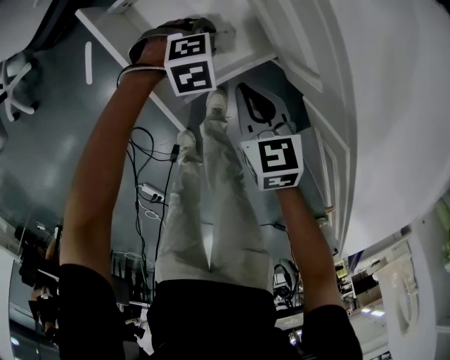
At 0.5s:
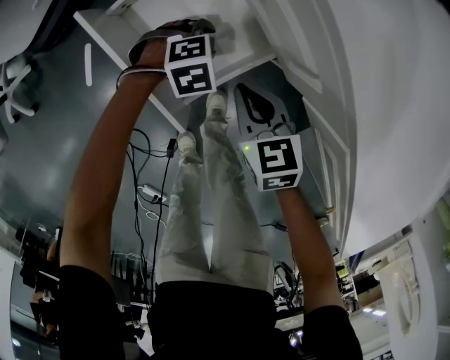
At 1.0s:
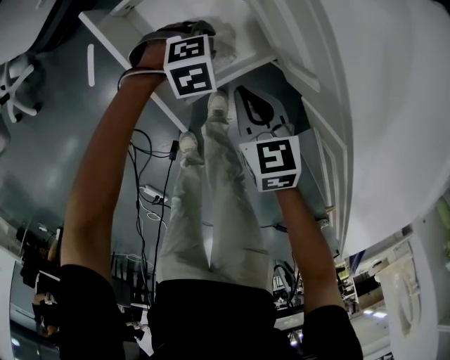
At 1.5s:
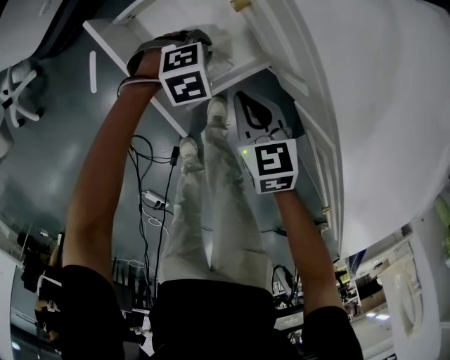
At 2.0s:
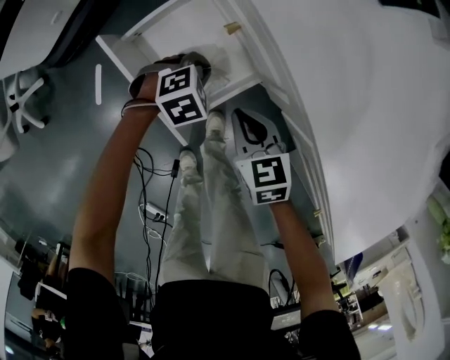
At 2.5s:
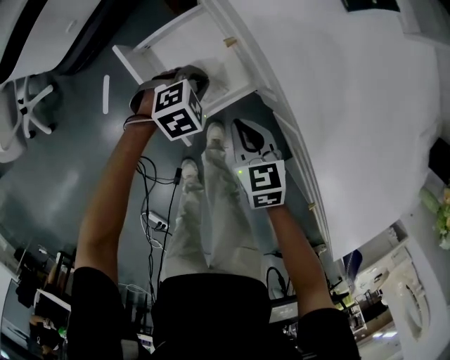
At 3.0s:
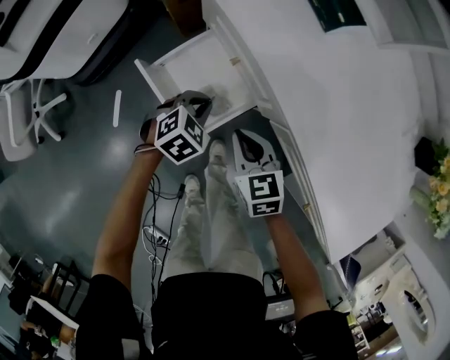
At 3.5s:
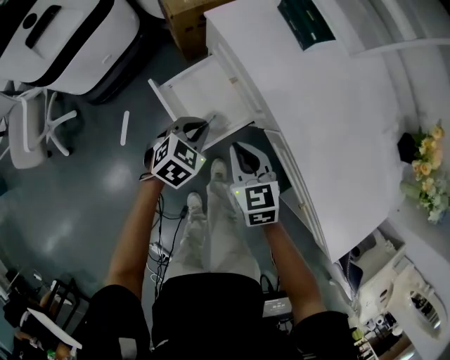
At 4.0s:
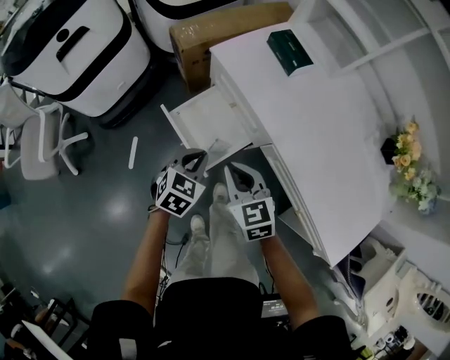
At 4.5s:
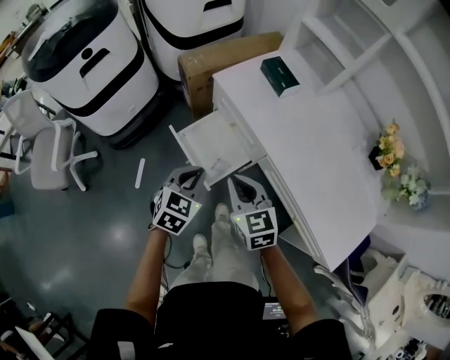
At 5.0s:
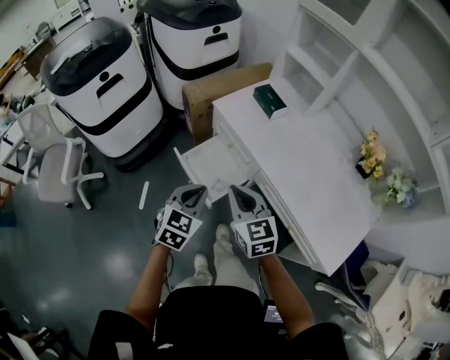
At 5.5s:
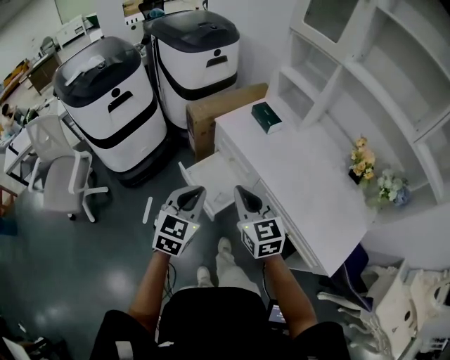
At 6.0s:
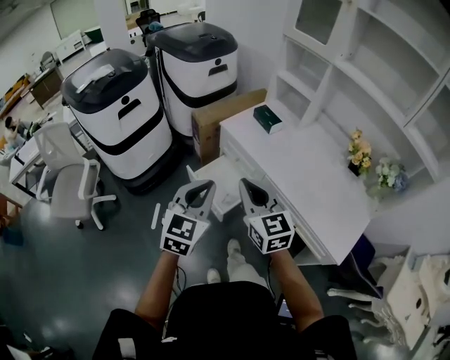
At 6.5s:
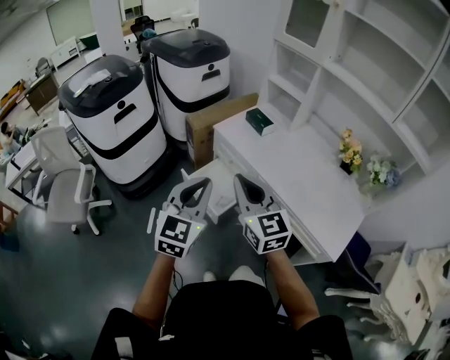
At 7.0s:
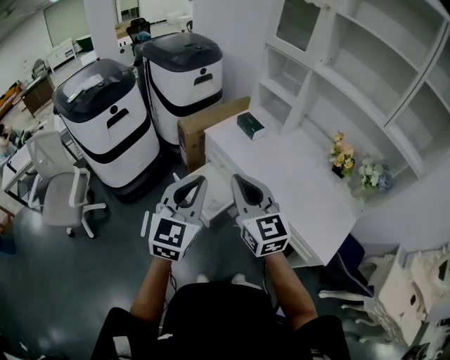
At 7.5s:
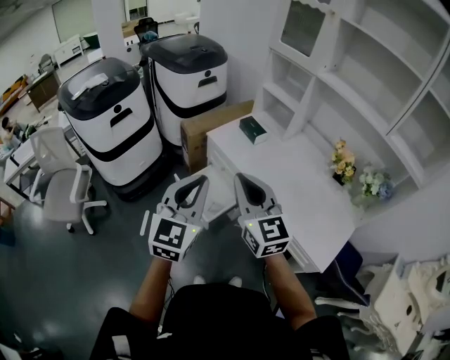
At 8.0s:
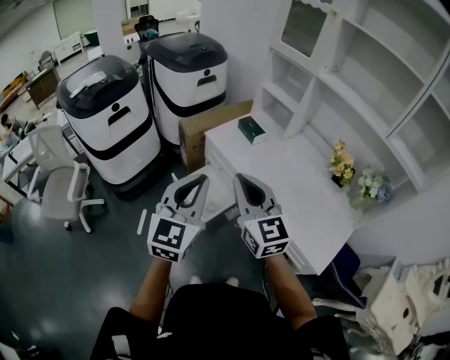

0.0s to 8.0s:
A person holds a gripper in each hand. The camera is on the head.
0.0s to 2.0s: The left gripper shifts roughly 5 cm upward, and closes.
2.0s to 4.0s: Both grippers travel together upward, about 30 cm. The left gripper turns by roughly 40 degrees.
4.0s to 6.0s: The grippers both shift upward and backward by some 35 cm. The left gripper points its fingers about 30 degrees further upward. Meanwhile the right gripper swivels about 20 degrees.
6.0s to 8.0s: The grippers both shift upward by about 10 cm.

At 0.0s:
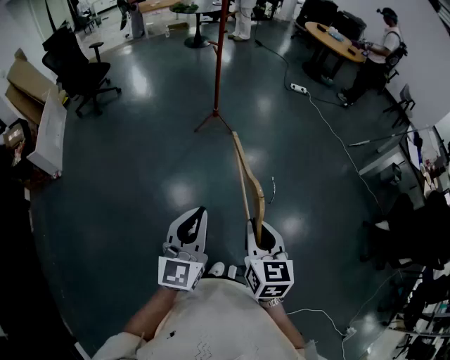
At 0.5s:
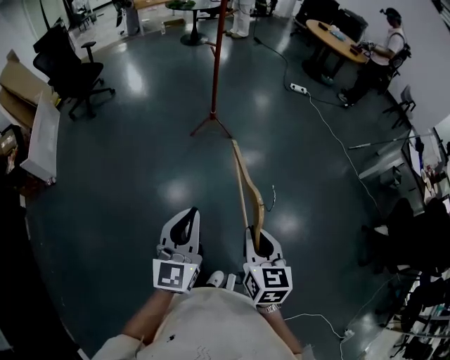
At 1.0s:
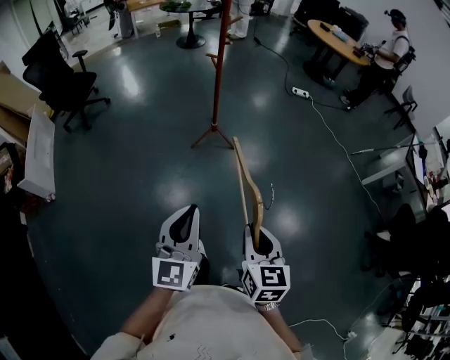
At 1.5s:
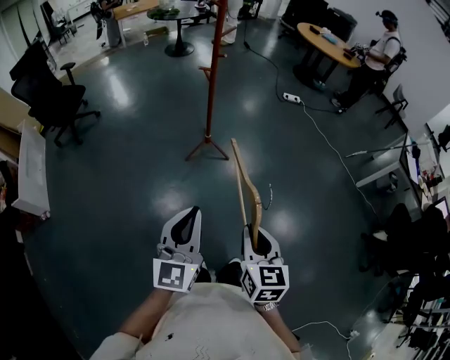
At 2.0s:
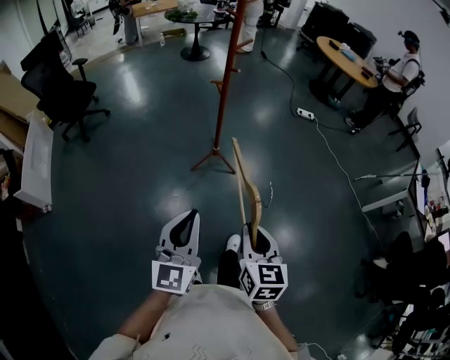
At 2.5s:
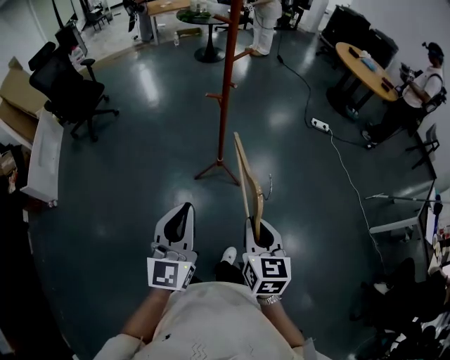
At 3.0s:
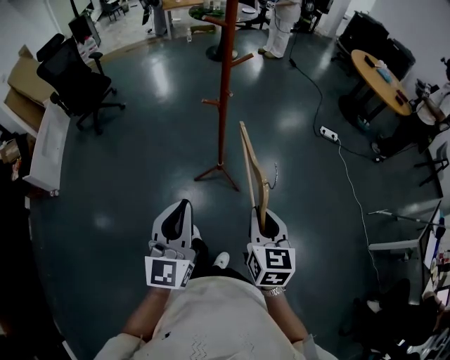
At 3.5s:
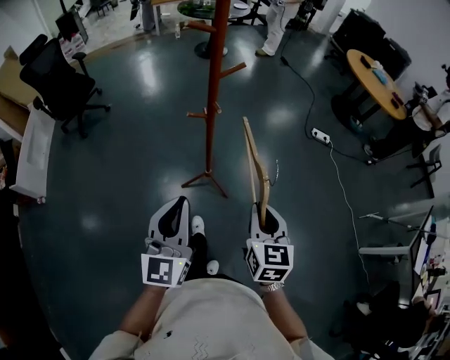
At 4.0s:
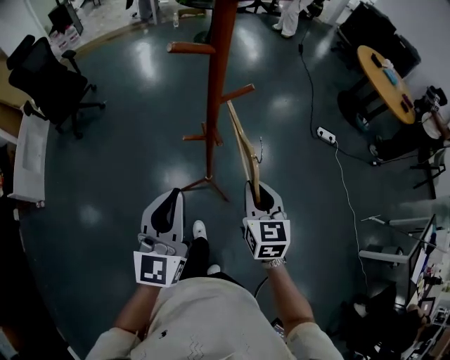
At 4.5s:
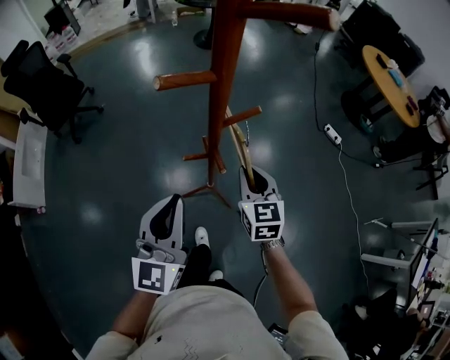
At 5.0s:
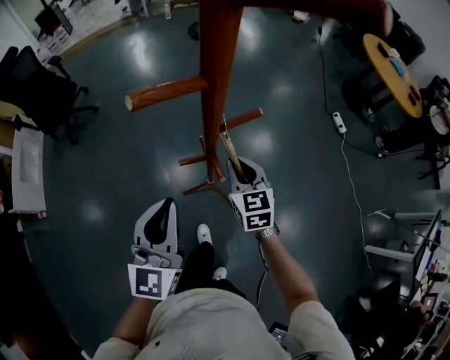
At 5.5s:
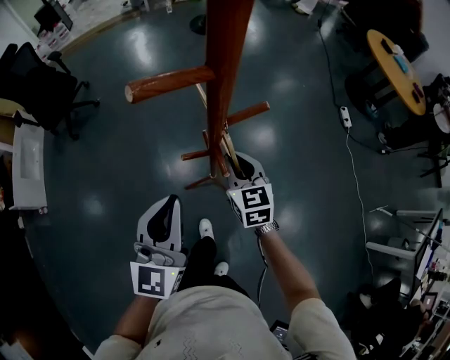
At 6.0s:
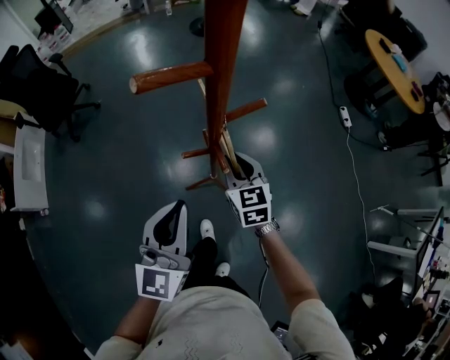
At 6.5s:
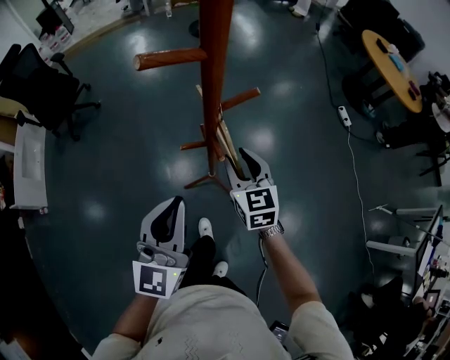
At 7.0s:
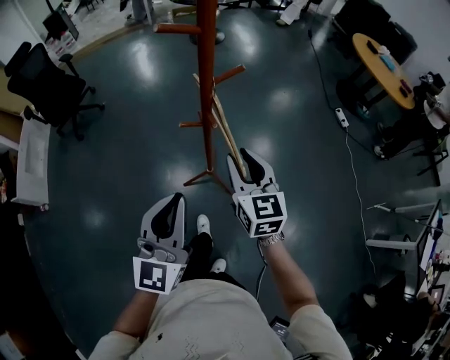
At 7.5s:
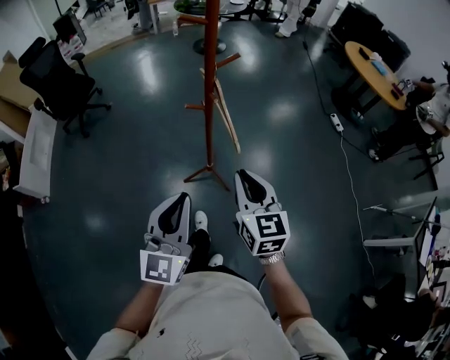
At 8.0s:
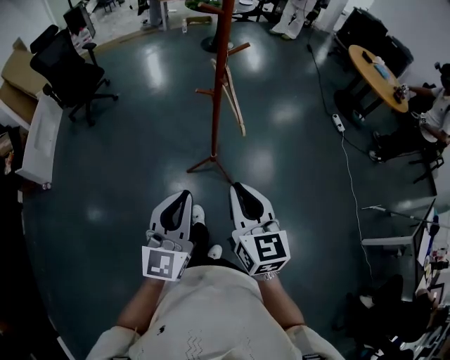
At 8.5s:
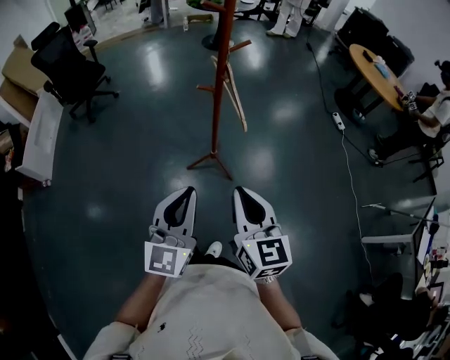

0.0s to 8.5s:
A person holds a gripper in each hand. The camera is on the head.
0.0s to 2.0s: The two grippers travel together, forward, about 40 cm.
2.0s to 4.0s: The pair of grippers is taken forward, about 50 cm.
4.0s to 6.5s: The right gripper is displaced forward and to the left by approximately 15 cm, and opens its fingers. Meanwhile the left gripper shifts some 5 cm forward.
6.5s to 8.5s: Both grippers move backward, some 40 cm. The right gripper closes up.

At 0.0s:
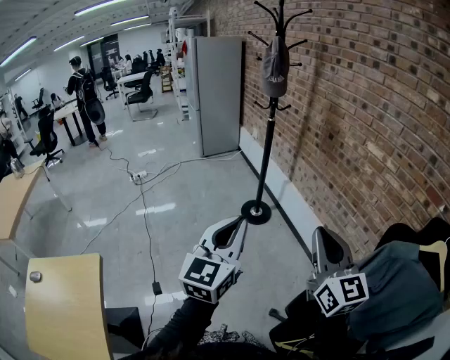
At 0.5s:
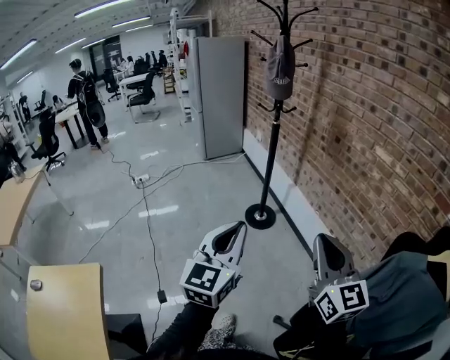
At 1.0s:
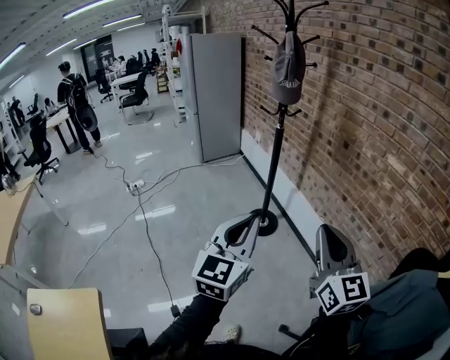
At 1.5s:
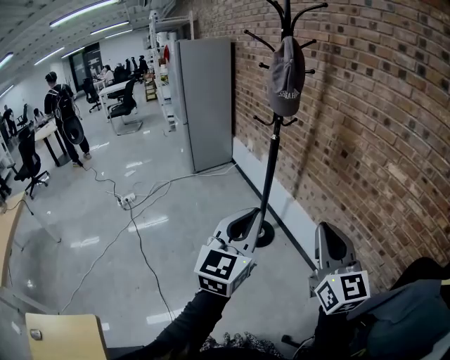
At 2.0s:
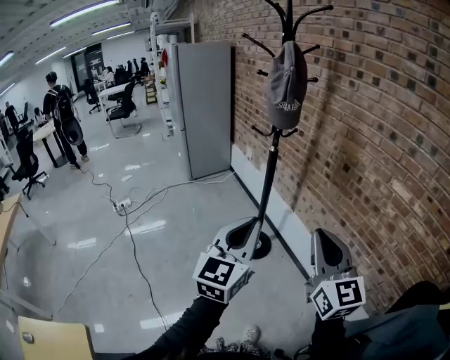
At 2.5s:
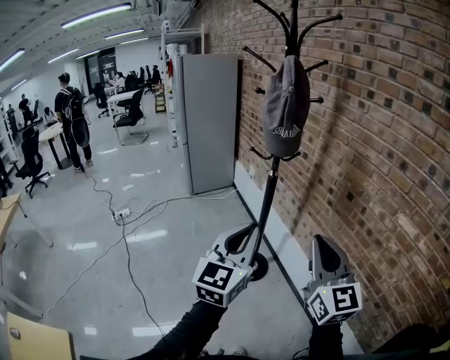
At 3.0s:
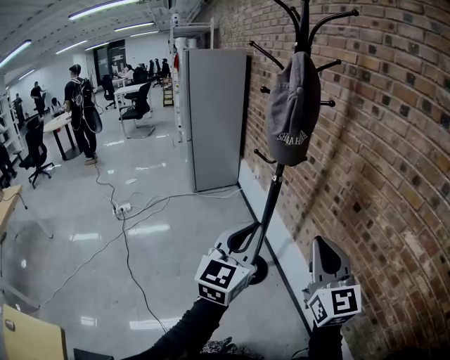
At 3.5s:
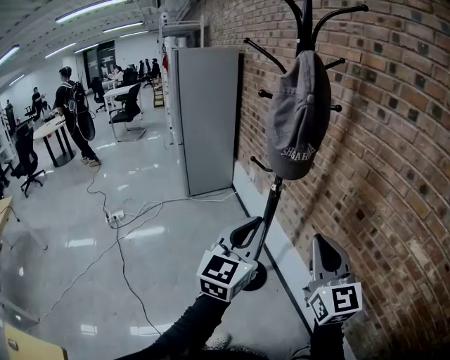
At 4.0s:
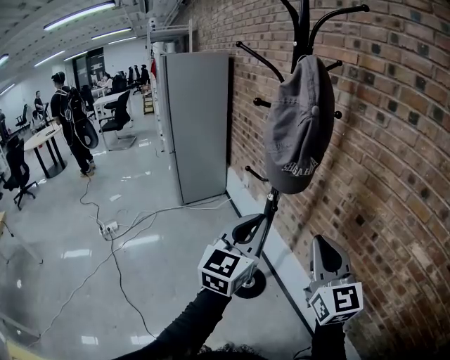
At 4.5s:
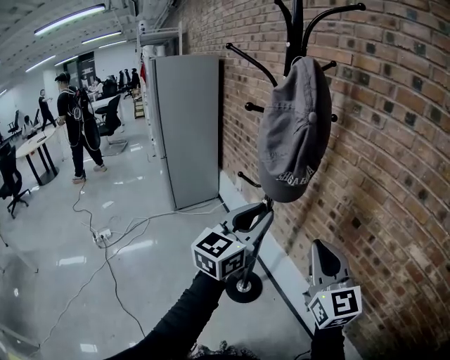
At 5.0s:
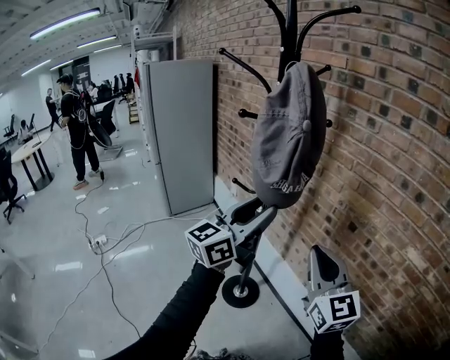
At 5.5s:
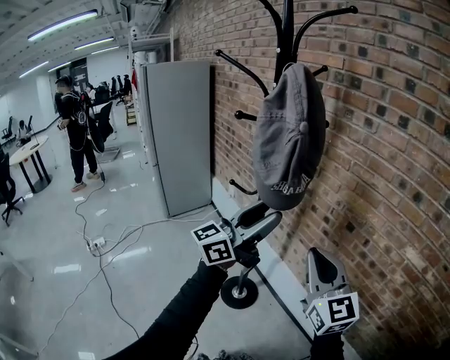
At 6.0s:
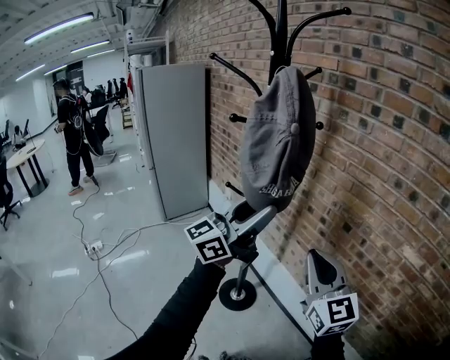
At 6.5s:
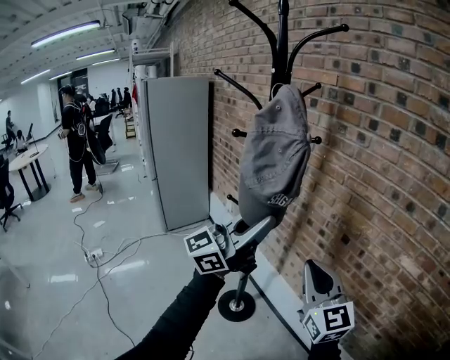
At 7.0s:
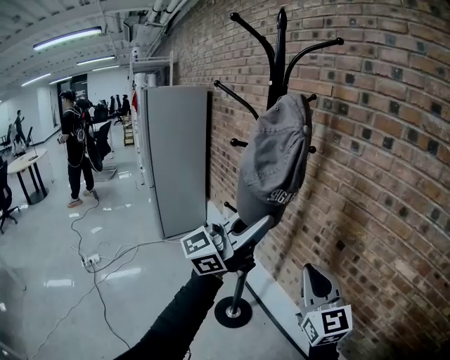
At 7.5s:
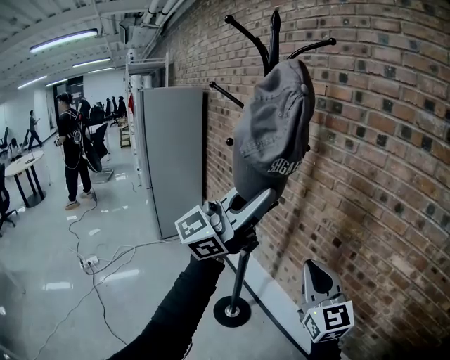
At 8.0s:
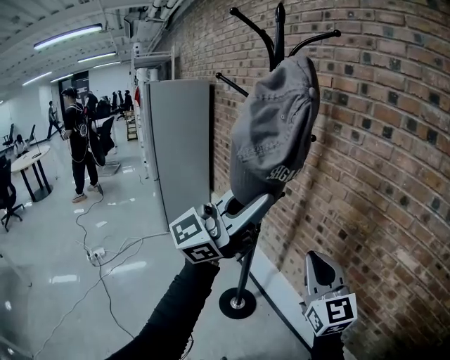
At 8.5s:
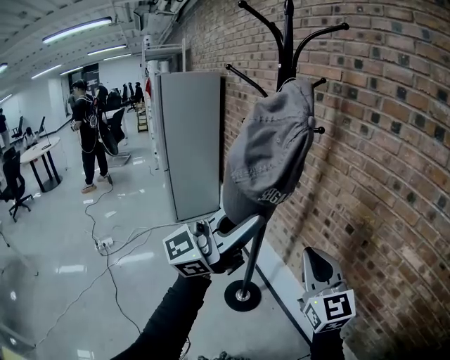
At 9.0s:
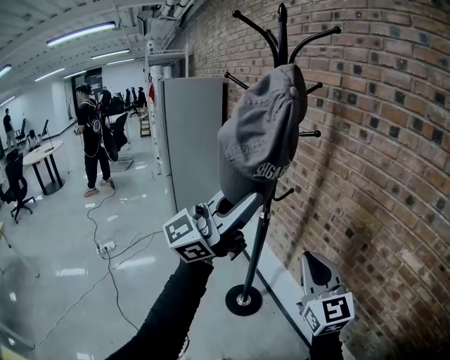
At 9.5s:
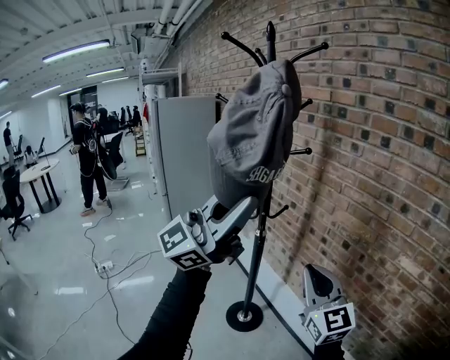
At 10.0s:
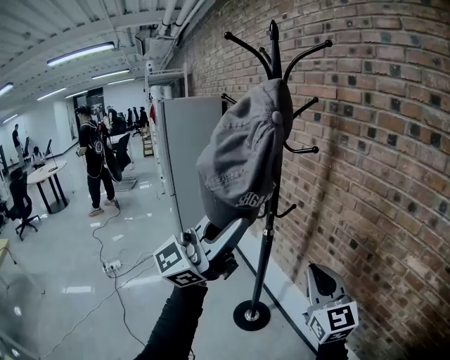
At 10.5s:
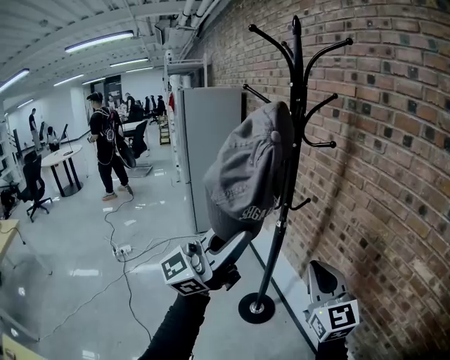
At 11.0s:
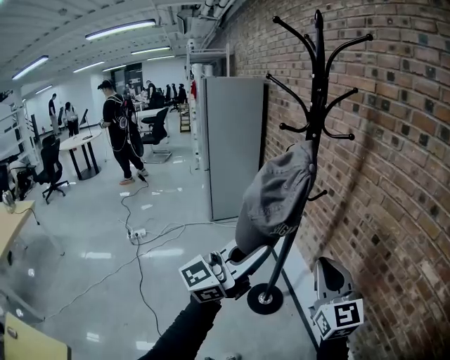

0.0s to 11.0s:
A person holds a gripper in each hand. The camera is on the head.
0.0s to 2.0s: Both grippers move forward, about 30 cm.
2.0s to 3.5s: The two grippers go roughly 25 cm forward.
3.5s to 5.5s: The left gripper travels forward by some 10 cm, turns by some 50 degrees, and opens, while the right gripper goes about 5 cm forward.
5.5s to 7.5s: The left gripper heads upward and backward, covering about 15 cm, rotates roughly 30 degrees, and closes.
7.5s to 9.0s: The left gripper is displaced backward by roughly 5 cm.
9.0s to 11.0s: The left gripper heads downward and backward, covering some 15 cm.
